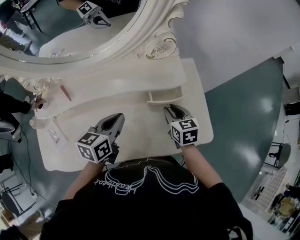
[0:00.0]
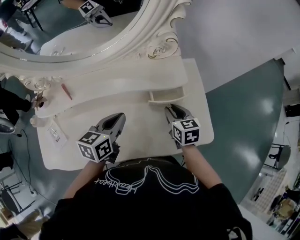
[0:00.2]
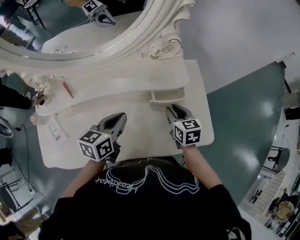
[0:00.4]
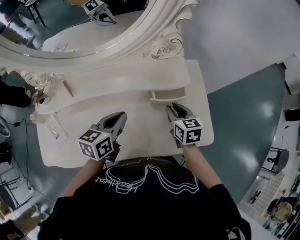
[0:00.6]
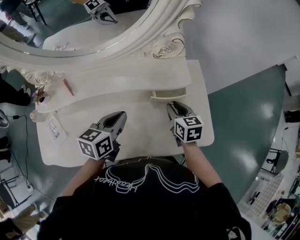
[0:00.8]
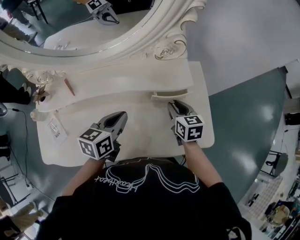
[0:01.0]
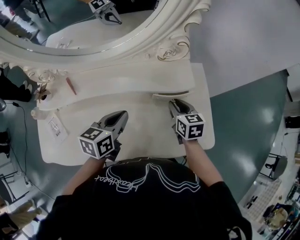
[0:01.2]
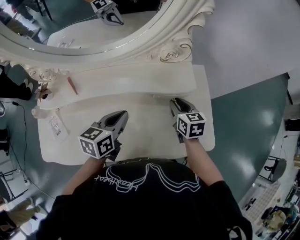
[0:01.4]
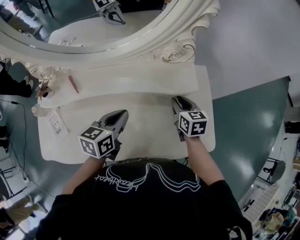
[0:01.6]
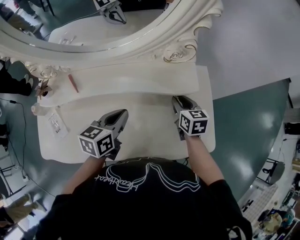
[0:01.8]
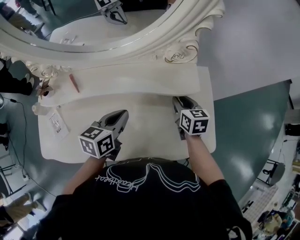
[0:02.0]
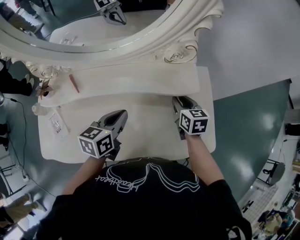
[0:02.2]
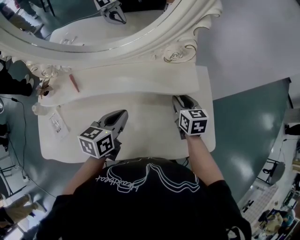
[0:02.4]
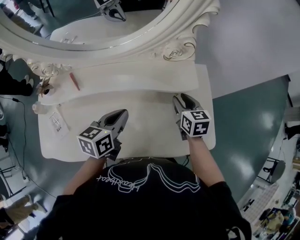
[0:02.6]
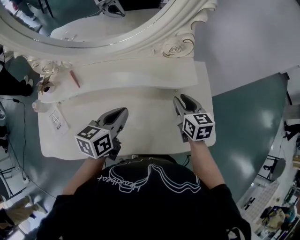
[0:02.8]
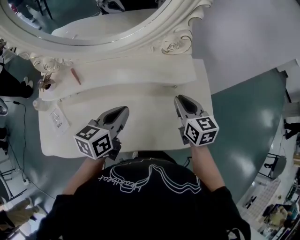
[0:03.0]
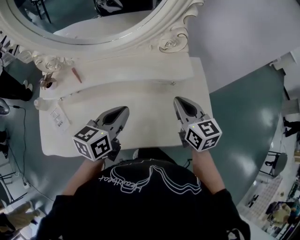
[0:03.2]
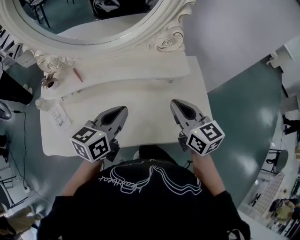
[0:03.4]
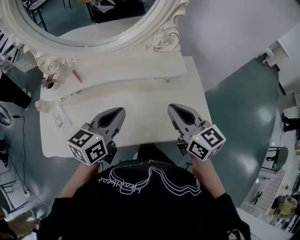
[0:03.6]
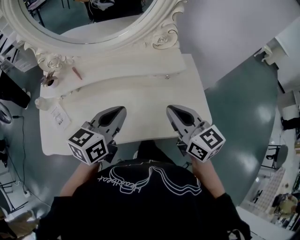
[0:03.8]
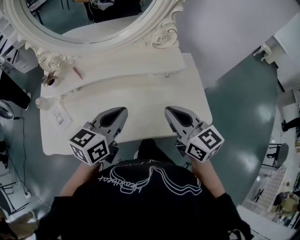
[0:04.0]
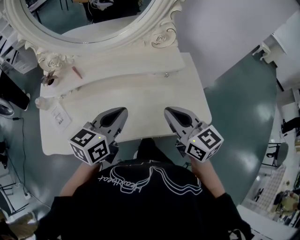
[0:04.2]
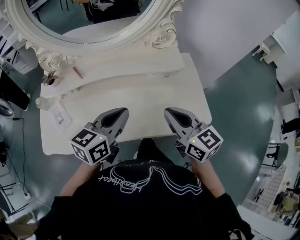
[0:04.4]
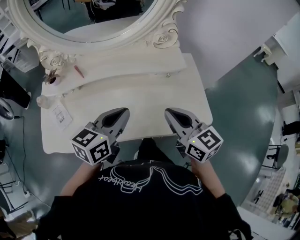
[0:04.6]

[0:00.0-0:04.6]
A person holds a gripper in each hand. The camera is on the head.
0:00.0 to 0:01.6: The right gripper goes some 5 cm forward.
0:01.6 to 0:03.0: The left gripper shifts by some 5 cm, while the right gripper heads upward and backward, covering about 10 cm.
0:03.0 to 0:04.6: The right gripper heads backward and upward, covering approximately 15 cm; the left gripper travels backward and upward by about 10 cm.

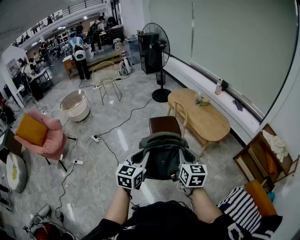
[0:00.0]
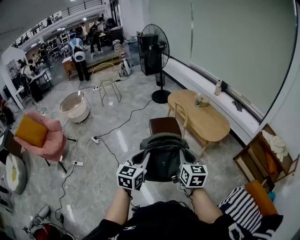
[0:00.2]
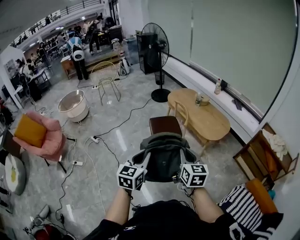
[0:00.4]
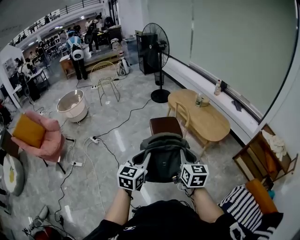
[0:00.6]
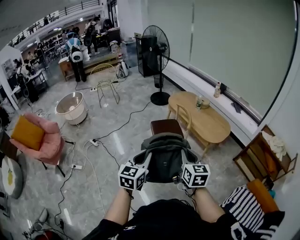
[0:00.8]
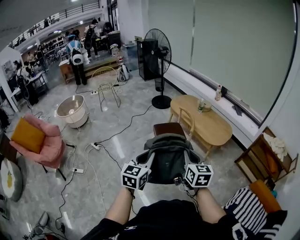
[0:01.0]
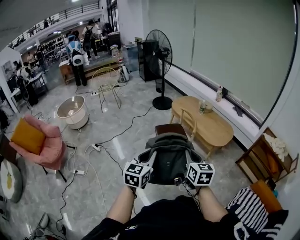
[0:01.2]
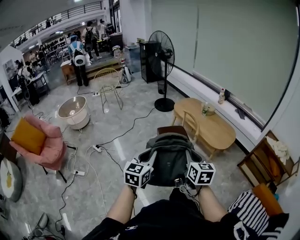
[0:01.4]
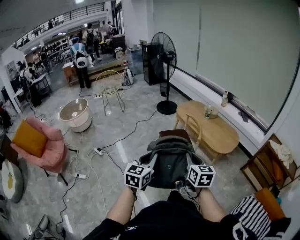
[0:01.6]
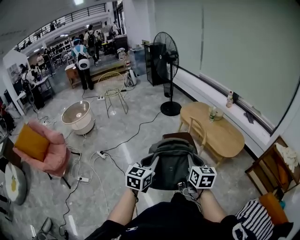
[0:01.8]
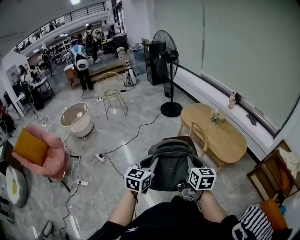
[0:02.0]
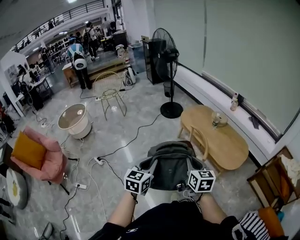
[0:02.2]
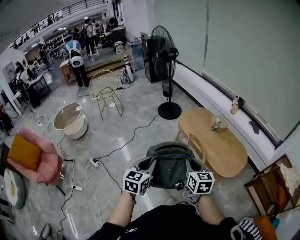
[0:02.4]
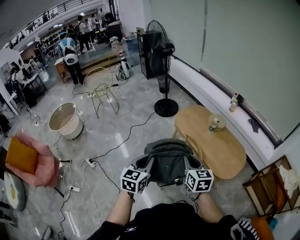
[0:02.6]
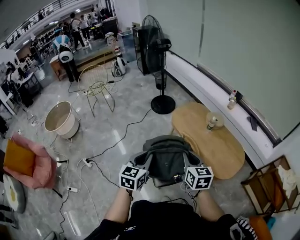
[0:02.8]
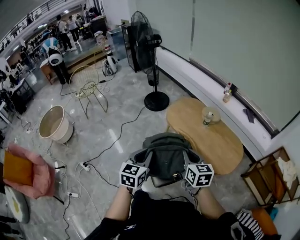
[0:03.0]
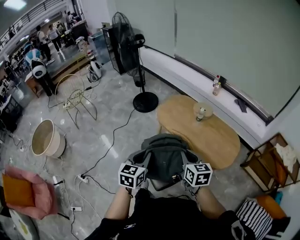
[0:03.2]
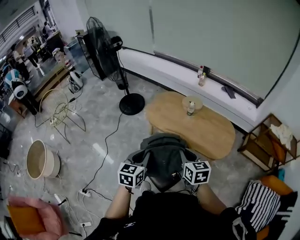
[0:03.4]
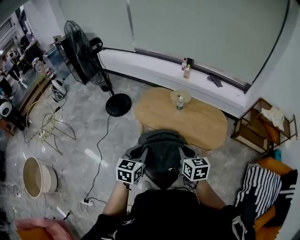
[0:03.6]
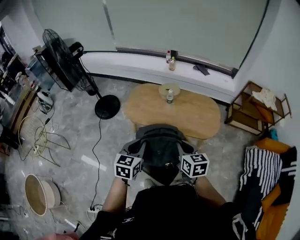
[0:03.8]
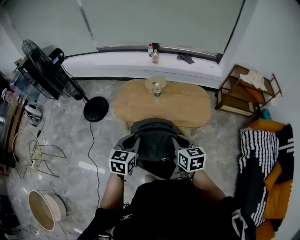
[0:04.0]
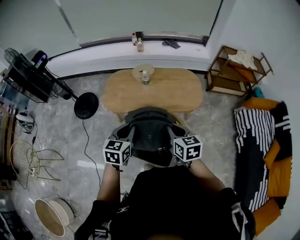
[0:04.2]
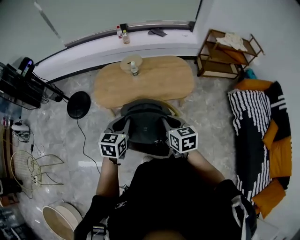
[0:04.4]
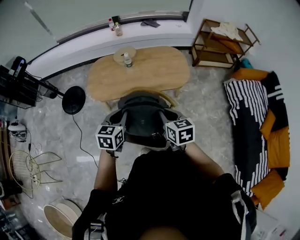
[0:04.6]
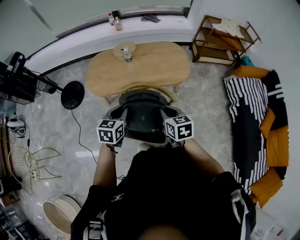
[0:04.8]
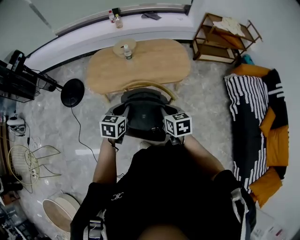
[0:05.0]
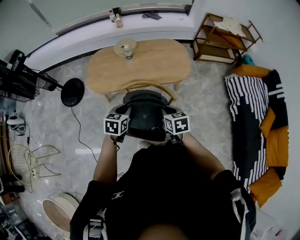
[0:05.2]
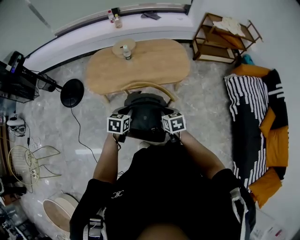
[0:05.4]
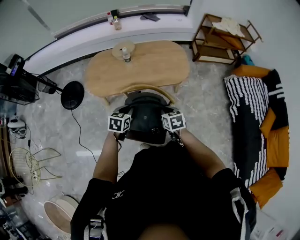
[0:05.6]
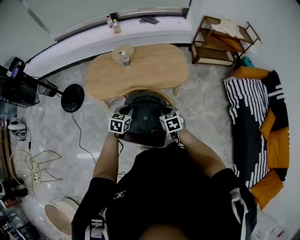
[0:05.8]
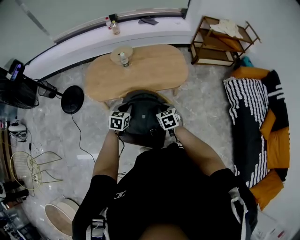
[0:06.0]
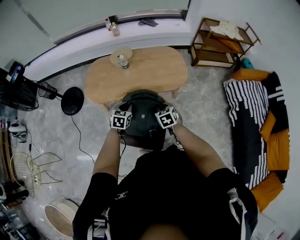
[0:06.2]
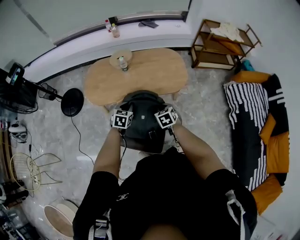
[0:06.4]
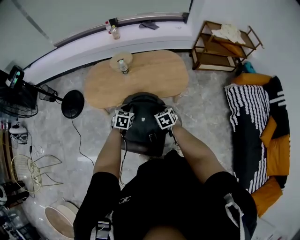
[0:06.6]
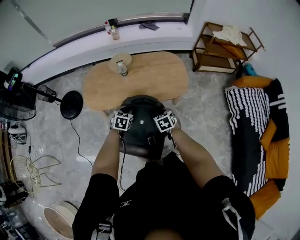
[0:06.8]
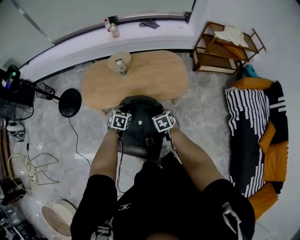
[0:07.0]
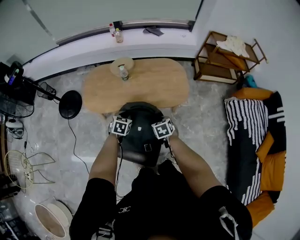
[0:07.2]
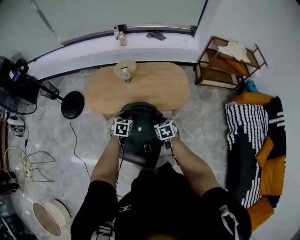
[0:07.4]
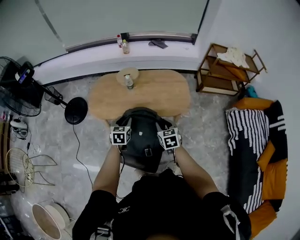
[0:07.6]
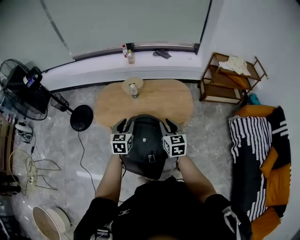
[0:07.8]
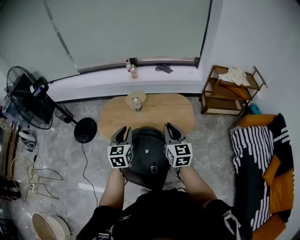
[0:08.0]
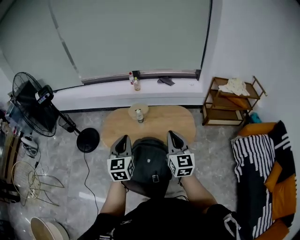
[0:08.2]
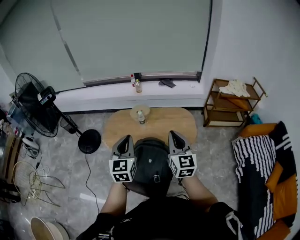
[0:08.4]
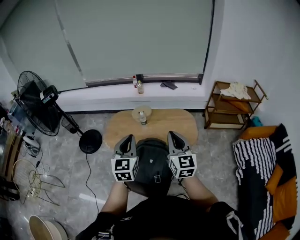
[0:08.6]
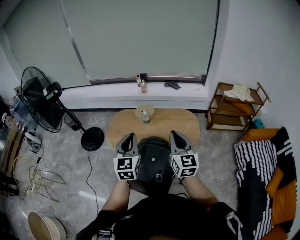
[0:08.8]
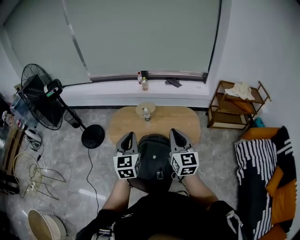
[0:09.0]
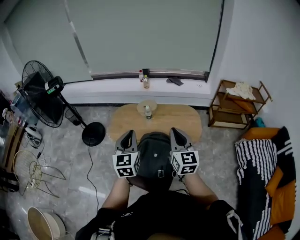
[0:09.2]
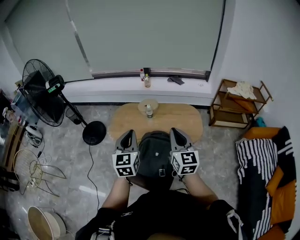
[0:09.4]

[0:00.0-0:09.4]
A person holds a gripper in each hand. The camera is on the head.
0:00.0 to 0:01.6: The grippers both shift to the left and forward by about 20 cm.
0:01.6 to 0:03.2: Both grippers are carried forward, about 60 cm.
0:03.2 to 0:04.8: The right gripper shifts approximately 10 cm downward, and turns by some 40 degrees. Meanwhile the left gripper shifts by roughly 20 cm, and changes its angle by some 50 degrees.
0:04.8 to 0:06.2: Both grippers travel together downward and forward, about 15 cm. The right gripper changes its angle by some 20 degrees.
0:06.2 to 0:07.8: The two grippers go roughly 15 cm upward. The left gripper rotates about 20 degrees, and opens its fingers; the right gripper turns by roughly 30 degrees.
0:07.8 to 0:09.4: The left gripper travels upward and backward by some 20 cm, changes its angle by about 20 degrees, and closes up, while the right gripper goes approximately 20 cm upward, backward and to the left, rotates approximately 20 degrees, and closes up.

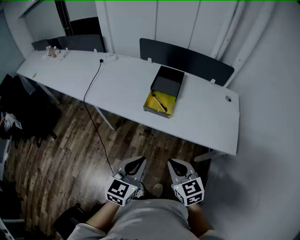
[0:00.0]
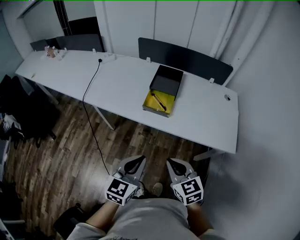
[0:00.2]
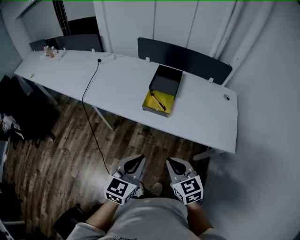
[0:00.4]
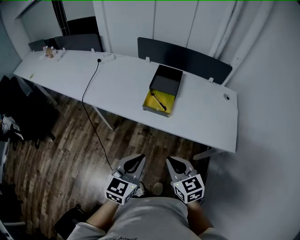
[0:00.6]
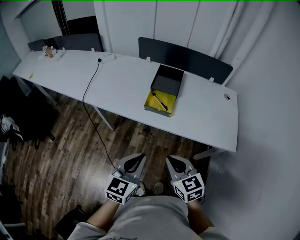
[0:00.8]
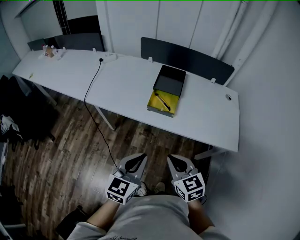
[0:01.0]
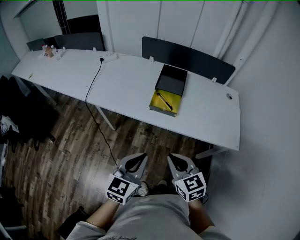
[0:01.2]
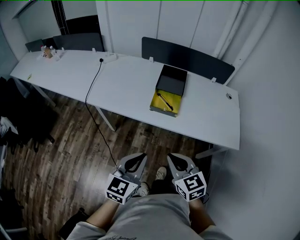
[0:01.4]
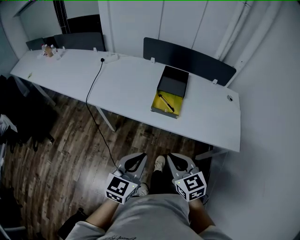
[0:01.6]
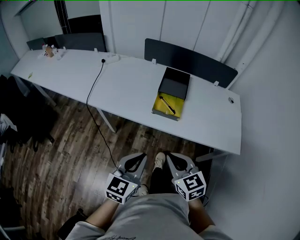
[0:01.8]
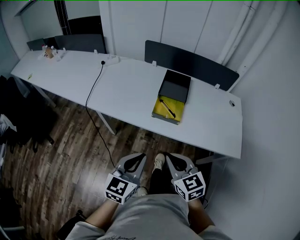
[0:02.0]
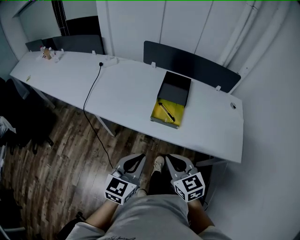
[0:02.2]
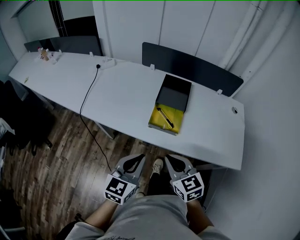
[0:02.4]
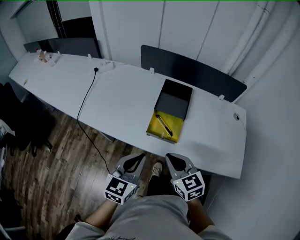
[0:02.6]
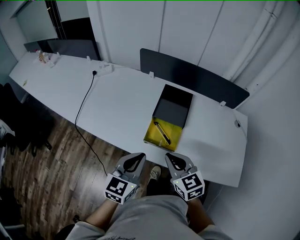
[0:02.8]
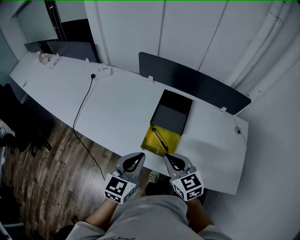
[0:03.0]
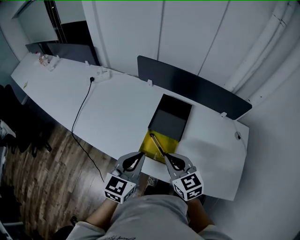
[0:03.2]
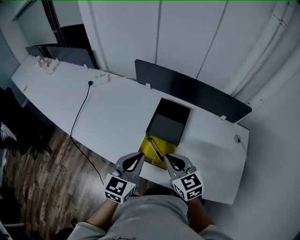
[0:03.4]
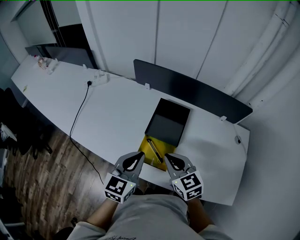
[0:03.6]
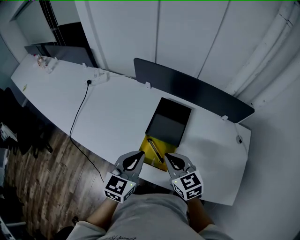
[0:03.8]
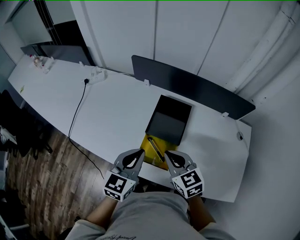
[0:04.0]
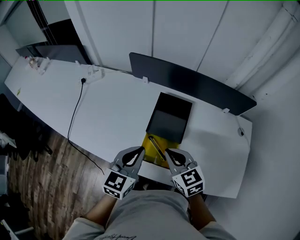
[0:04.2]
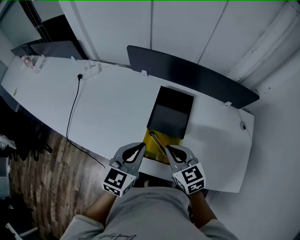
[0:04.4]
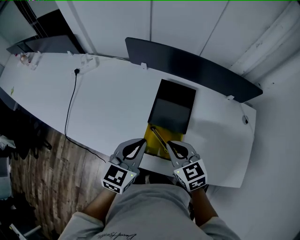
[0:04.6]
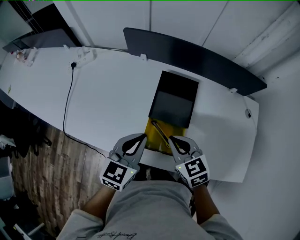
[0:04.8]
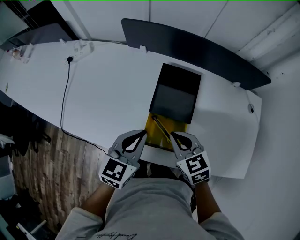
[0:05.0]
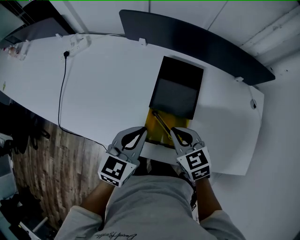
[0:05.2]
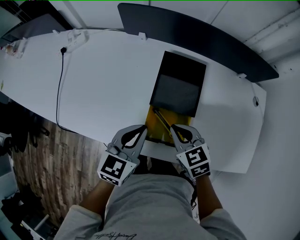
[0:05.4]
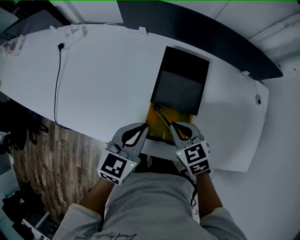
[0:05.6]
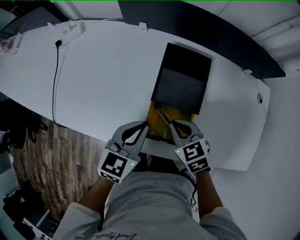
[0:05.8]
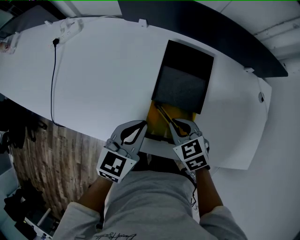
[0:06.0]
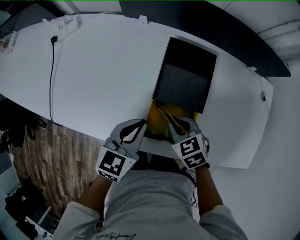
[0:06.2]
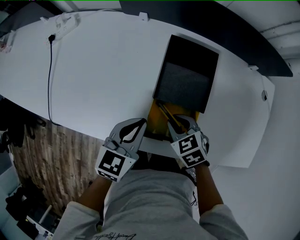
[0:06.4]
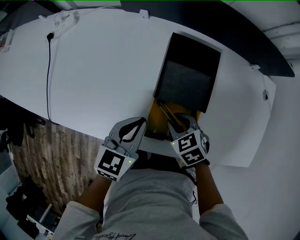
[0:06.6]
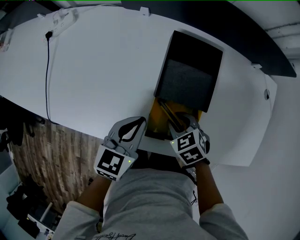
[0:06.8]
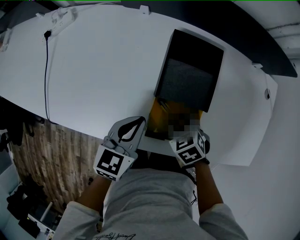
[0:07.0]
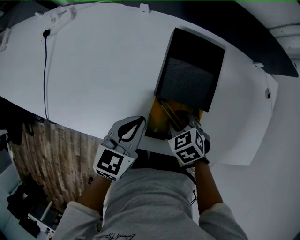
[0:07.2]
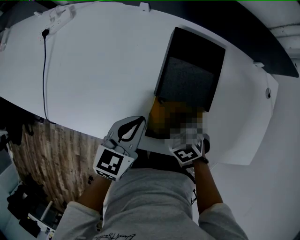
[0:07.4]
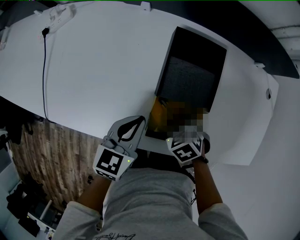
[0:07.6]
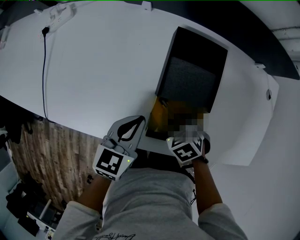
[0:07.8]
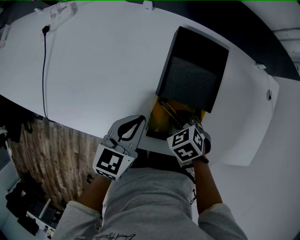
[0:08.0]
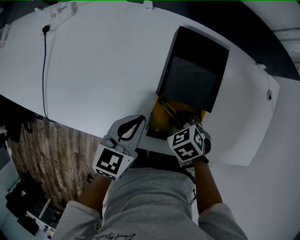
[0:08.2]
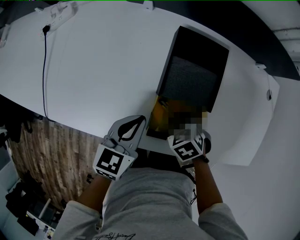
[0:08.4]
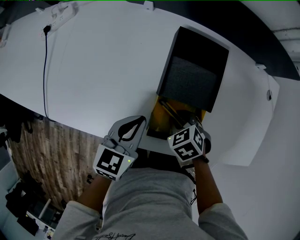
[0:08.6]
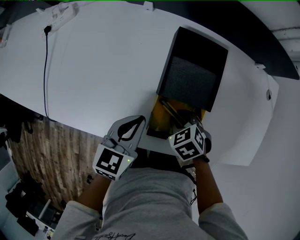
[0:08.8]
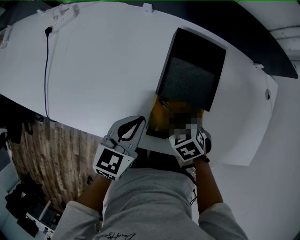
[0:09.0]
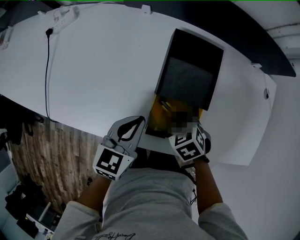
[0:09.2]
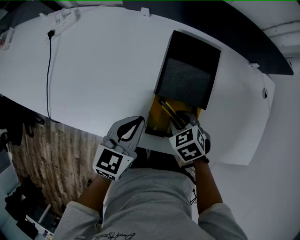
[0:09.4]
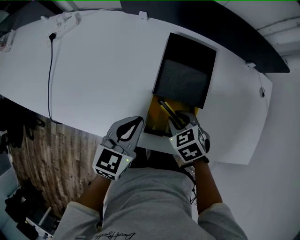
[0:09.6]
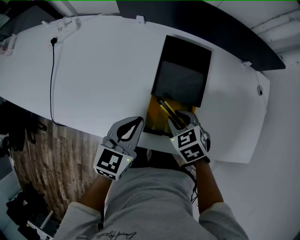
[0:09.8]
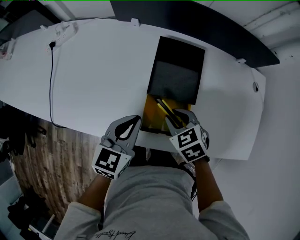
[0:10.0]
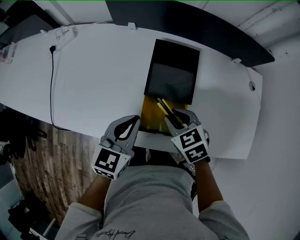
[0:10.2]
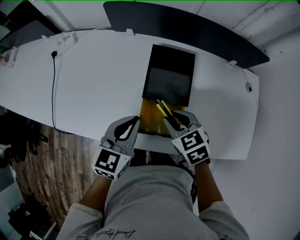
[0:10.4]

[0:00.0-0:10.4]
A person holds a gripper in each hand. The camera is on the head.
0:00.0 to 0:01.4: Both grippers move to the left, some 5 cm.
0:01.4 to 0:03.0: Both grippers travel together forward, about 30 cm.
0:03.0 to 0:04.4: The two grippers go approximately 10 cm forward.
0:04.4 to 0:06.0: The two grippers go roughly 10 cm downward. The right gripper rotates about 20 degrees.
0:06.0 to 0:07.4: The right gripper shifts about 5 cm downward, and opens its fingers.
0:07.4 to 0:09.0: Both grippers stay about where they are.
0:09.0 to 0:10.4: The right gripper shifts some 15 cm upward, and changes its angle by about 20 degrees. Meanwhile the left gripper heads upward, covering approximately 10 cm.
